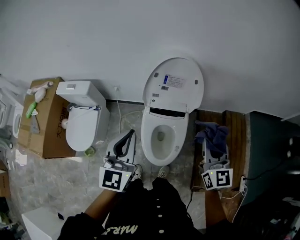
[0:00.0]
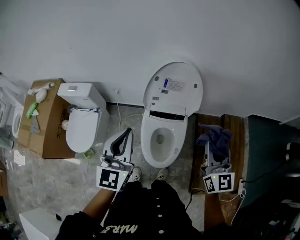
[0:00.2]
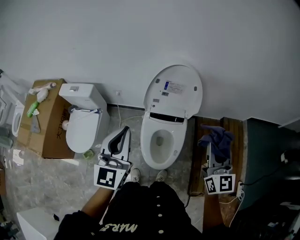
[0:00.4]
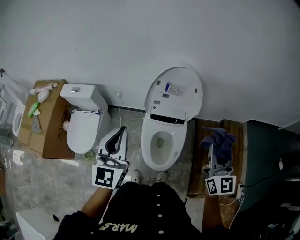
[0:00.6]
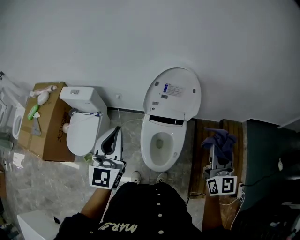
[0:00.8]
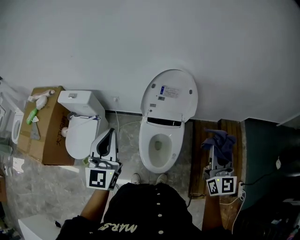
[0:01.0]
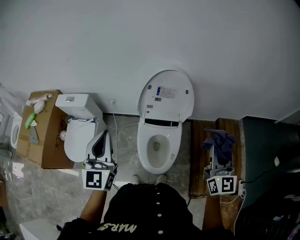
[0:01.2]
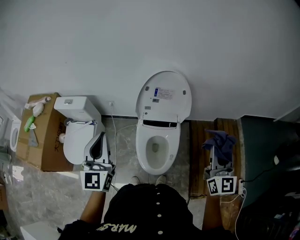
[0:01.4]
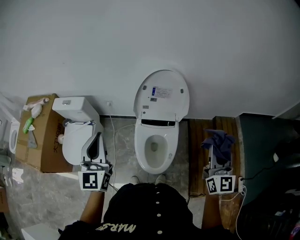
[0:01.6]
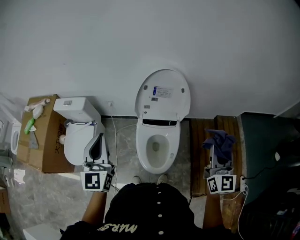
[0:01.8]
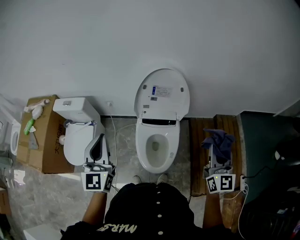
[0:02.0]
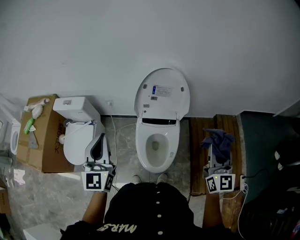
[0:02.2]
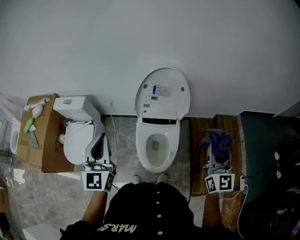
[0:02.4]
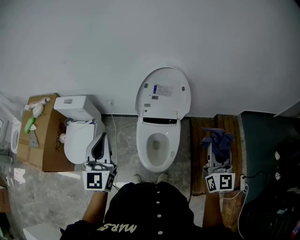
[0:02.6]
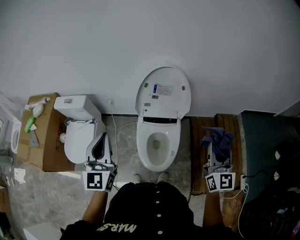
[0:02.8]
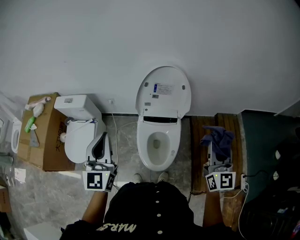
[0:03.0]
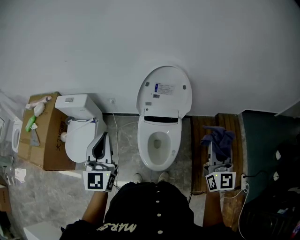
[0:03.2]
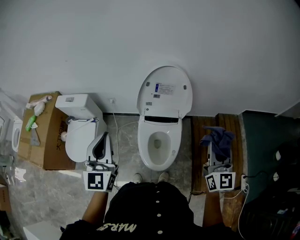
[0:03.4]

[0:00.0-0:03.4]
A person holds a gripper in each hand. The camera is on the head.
0:00.0 to 0:01.6: The left gripper goes approximately 10 cm to the left. The right gripper goes some 5 cm to the right.
0:01.6 to 0:03.4: The grippers stay close to where they were, moving slightly.

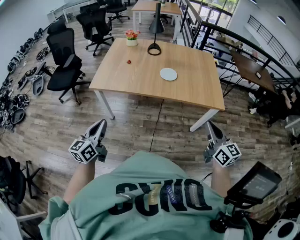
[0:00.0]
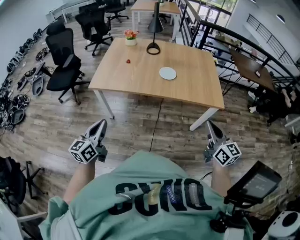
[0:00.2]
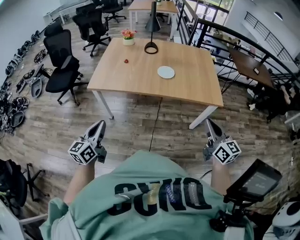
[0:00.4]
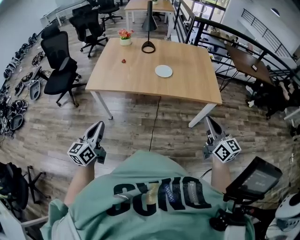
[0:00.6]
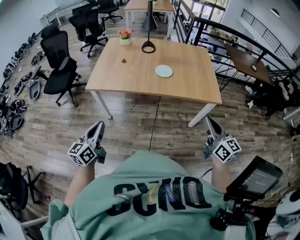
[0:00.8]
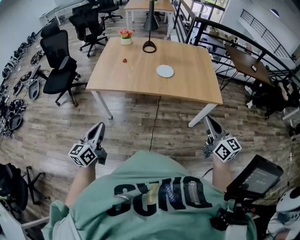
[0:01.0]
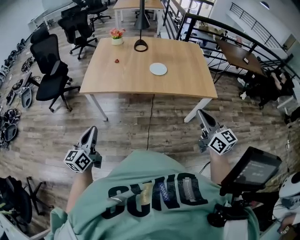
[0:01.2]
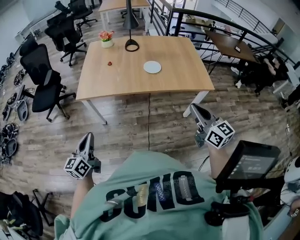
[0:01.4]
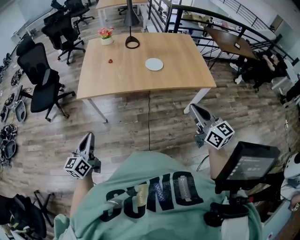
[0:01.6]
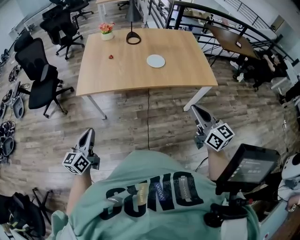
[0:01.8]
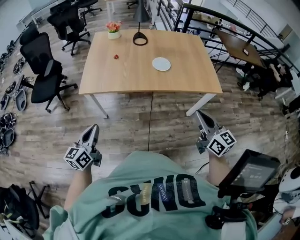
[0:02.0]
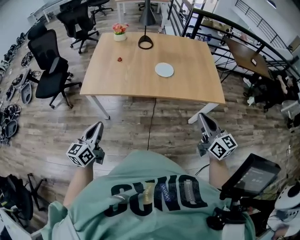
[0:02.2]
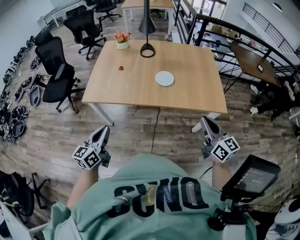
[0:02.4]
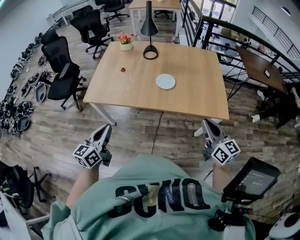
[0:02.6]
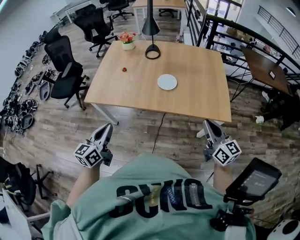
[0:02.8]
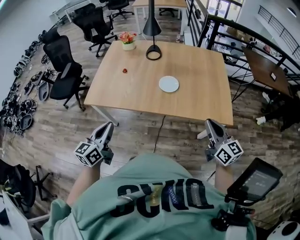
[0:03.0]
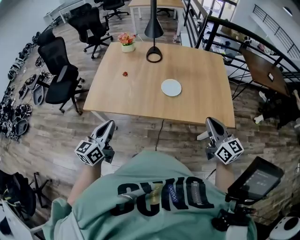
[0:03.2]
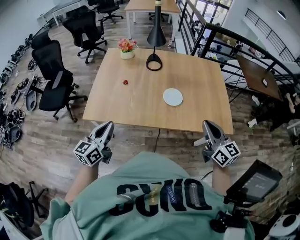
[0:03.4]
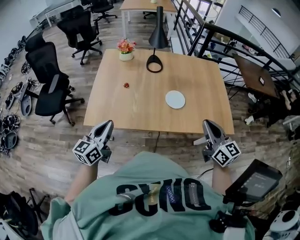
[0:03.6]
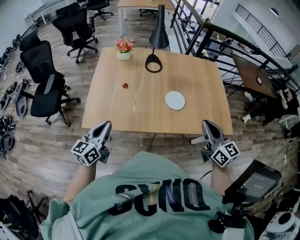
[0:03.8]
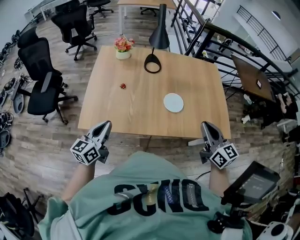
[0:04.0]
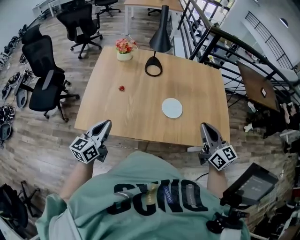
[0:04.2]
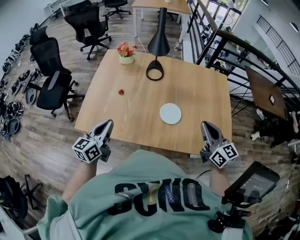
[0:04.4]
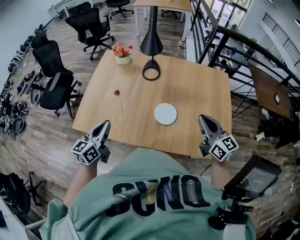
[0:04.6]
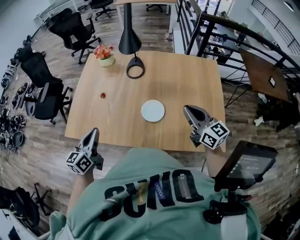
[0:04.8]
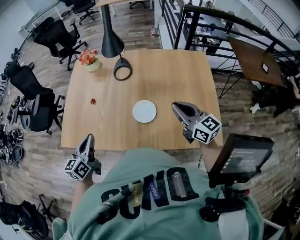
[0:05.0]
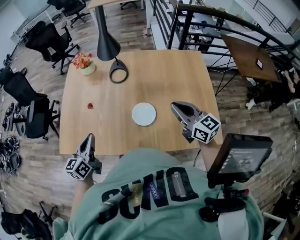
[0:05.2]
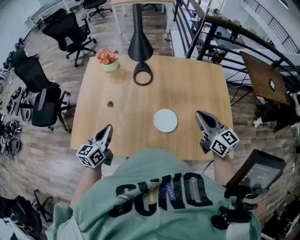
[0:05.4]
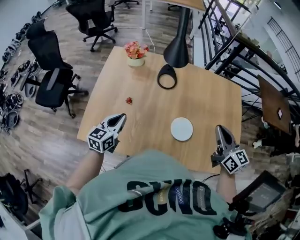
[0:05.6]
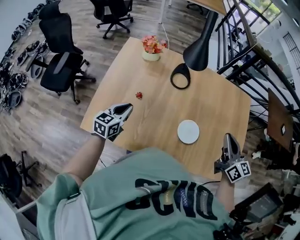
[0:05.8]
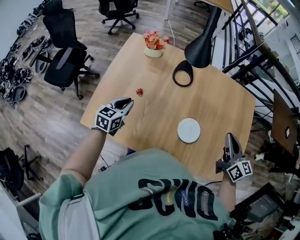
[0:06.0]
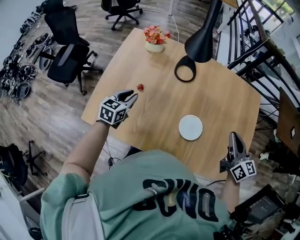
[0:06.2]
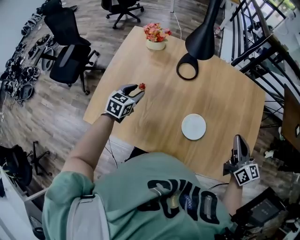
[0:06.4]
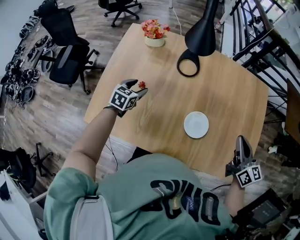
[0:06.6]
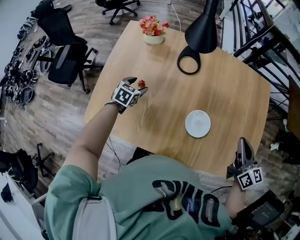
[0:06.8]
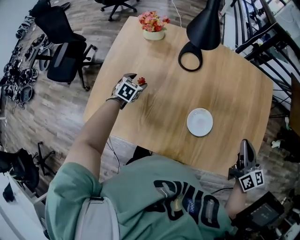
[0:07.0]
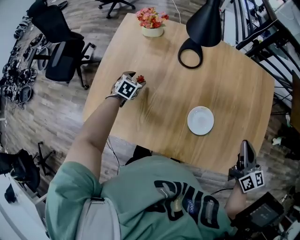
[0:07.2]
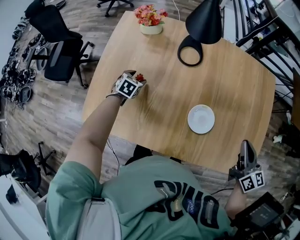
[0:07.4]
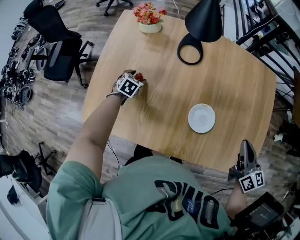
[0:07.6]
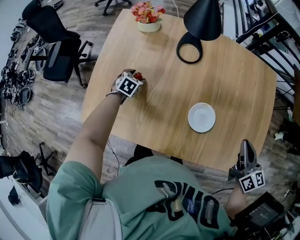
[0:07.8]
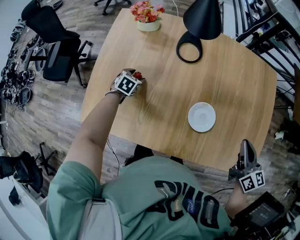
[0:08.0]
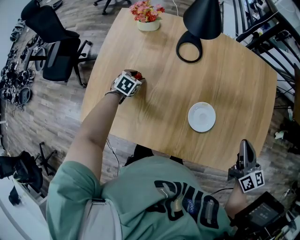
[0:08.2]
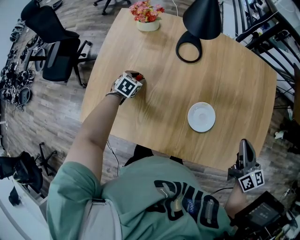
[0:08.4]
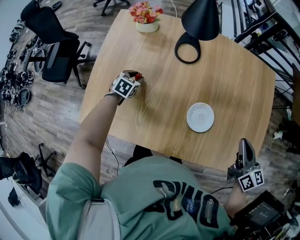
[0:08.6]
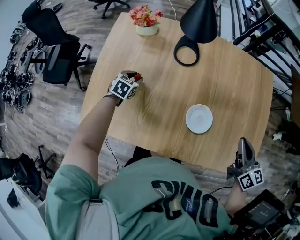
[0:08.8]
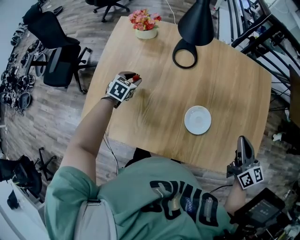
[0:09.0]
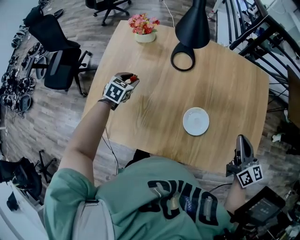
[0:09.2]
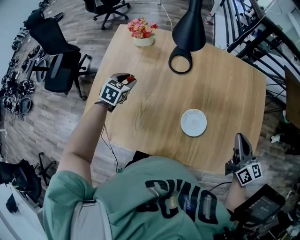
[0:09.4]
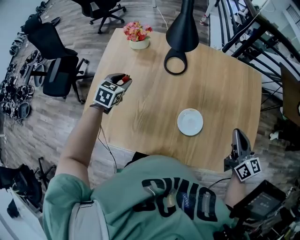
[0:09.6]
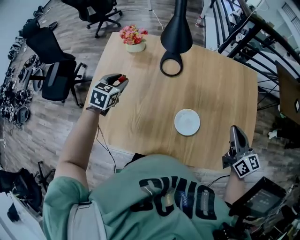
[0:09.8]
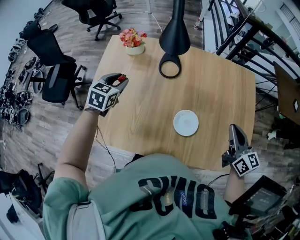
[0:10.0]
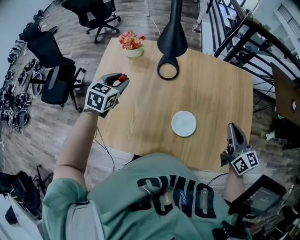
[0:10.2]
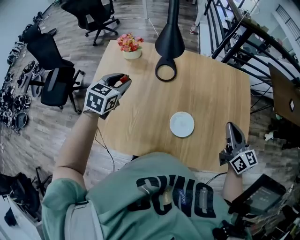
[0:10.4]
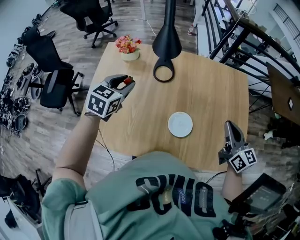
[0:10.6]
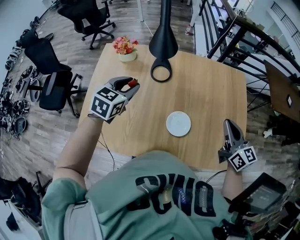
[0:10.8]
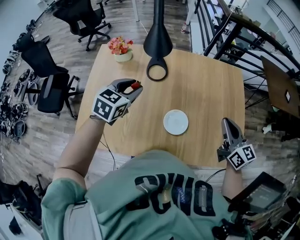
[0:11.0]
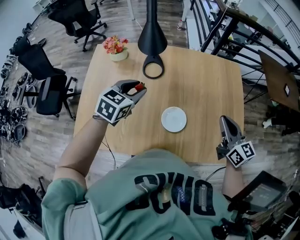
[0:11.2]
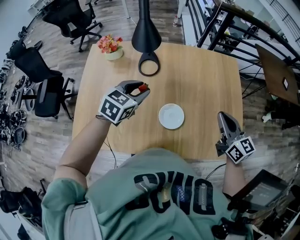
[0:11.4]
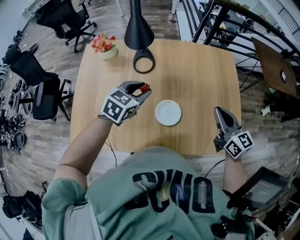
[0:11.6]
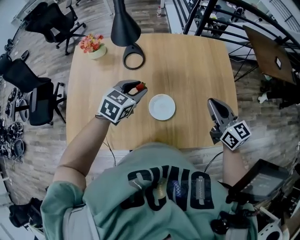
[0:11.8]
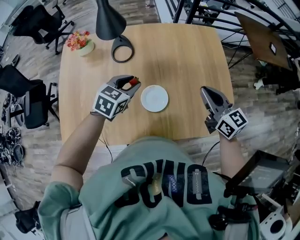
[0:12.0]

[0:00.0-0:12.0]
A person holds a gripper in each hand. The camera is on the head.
0:00.0 to 0:01.6: Both grippers move to the left, roughly 10 cm.
0:01.6 to 0:03.0: The left gripper moves to the right and forward, some 25 cm, while the right gripper goes about 25 cm forward and to the right.
0:03.0 to 0:04.4: The two grippers go about 25 cm forward.
0:04.4 to 0:06.0: The right gripper goes about 15 cm forward, while the left gripper is displaced forward and downward by about 25 cm, and rotates approximately 20 degrees.
0:06.0 to 0:07.6: The left gripper shifts some 20 cm downward and forward, tilts its fingers approximately 30 degrees downward, and opens up. The right gripper shifts approximately 10 cm downward and to the right.
0:07.6 to 0:09.0: The left gripper travels upward by roughly 5 cm, and closes.
0:09.0 to 0:10.4: The right gripper is displaced upward by some 5 cm. Meanwhile the left gripper moves upward, approximately 20 cm.
0:10.4 to 0:12.0: The left gripper travels to the right by about 25 cm, and turns by about 20 degrees.

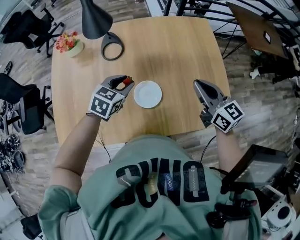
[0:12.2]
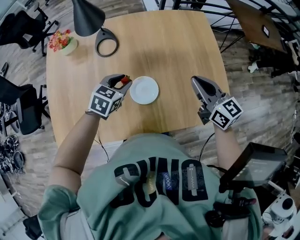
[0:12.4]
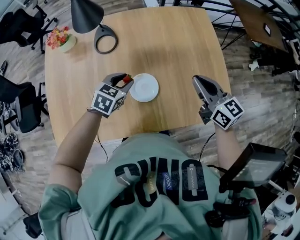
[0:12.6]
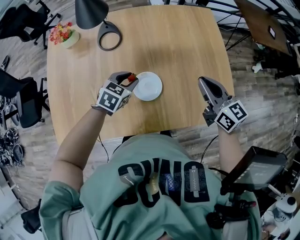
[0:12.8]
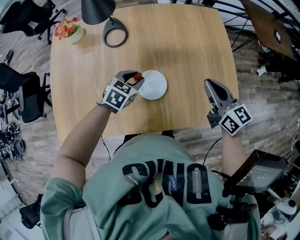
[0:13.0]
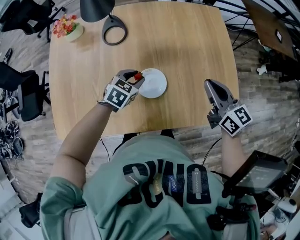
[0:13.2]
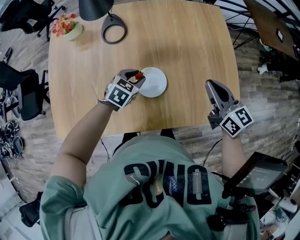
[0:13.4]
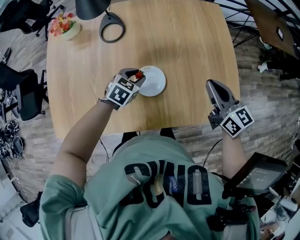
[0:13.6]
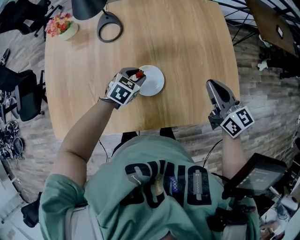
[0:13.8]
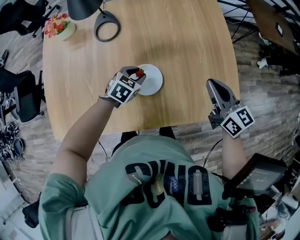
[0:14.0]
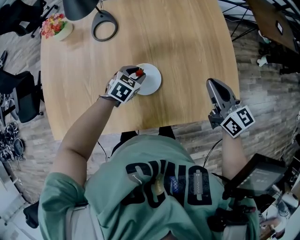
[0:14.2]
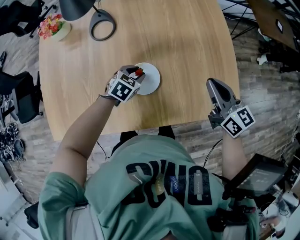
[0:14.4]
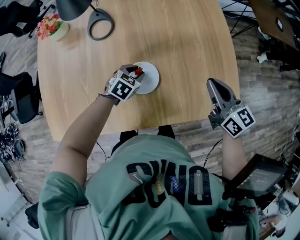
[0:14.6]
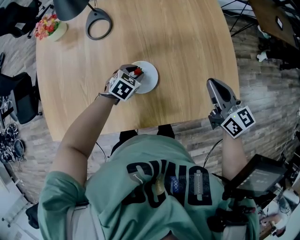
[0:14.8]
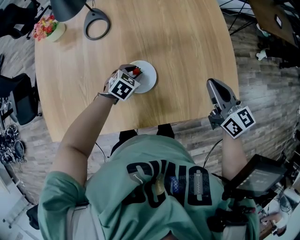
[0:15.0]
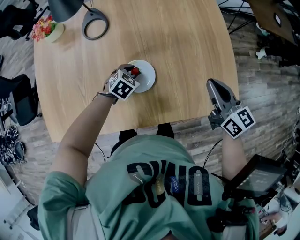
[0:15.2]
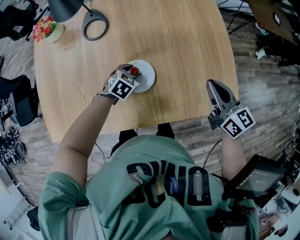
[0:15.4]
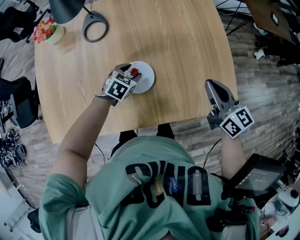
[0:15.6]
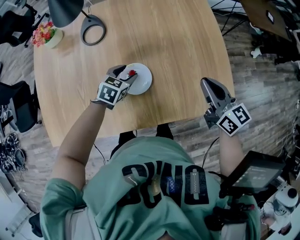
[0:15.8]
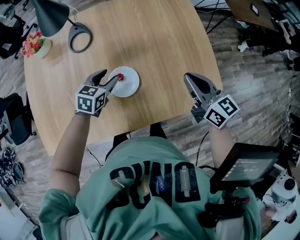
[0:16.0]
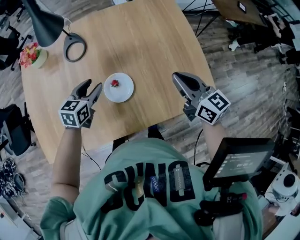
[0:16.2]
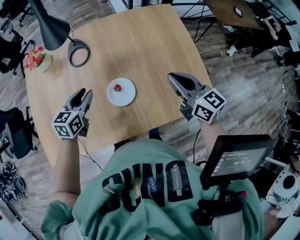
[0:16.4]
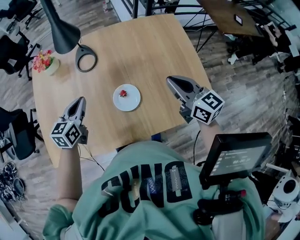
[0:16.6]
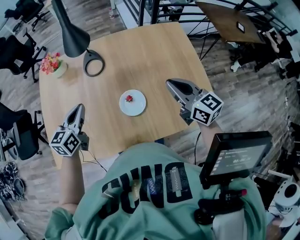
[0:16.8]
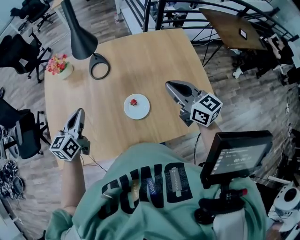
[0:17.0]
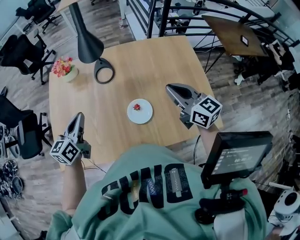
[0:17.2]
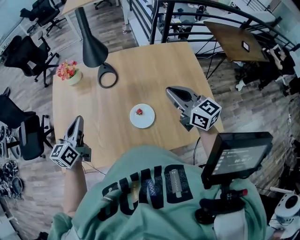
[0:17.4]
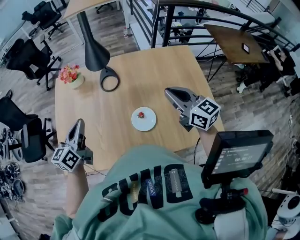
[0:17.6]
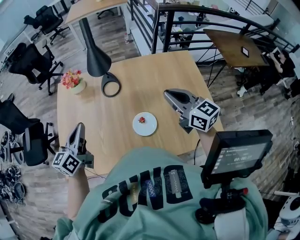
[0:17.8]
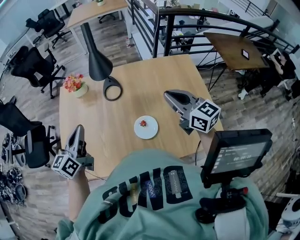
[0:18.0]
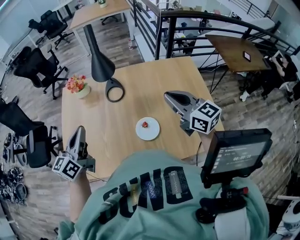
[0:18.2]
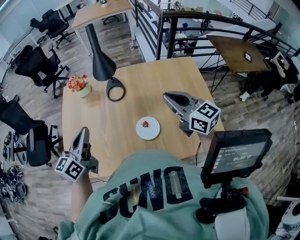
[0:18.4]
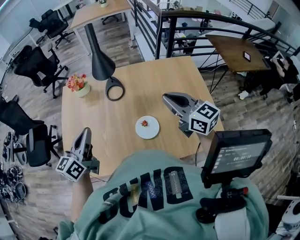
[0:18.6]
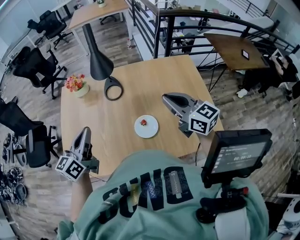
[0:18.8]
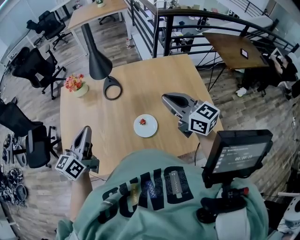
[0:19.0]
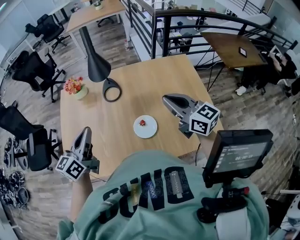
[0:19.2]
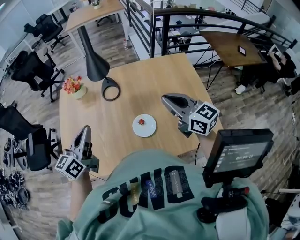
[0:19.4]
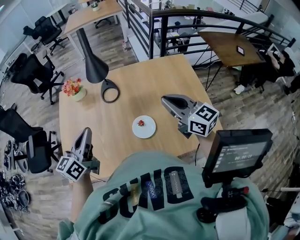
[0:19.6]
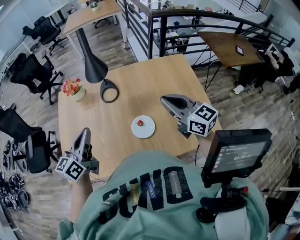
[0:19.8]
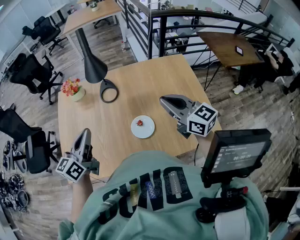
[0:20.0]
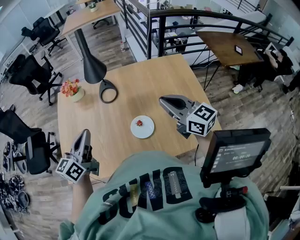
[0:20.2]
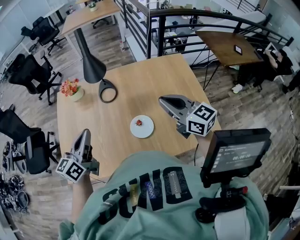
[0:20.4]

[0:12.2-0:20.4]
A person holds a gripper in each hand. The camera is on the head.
0:12.2 to 0:13.8: The right gripper is displaced downward and to the right by about 10 cm, while the left gripper is displaced downward and to the right by approximately 15 cm.
0:13.8 to 0:15.4: The left gripper moves downward, some 5 cm.
0:15.4 to 0:17.2: The right gripper moves upward and to the left, some 20 cm, while the left gripper travels upward and to the left by roughly 40 cm, angles its fingers upward, by approximately 50 degrees, and closes its fingers.
0:17.2 to 0:18.8: The right gripper shifts by about 5 cm. Meanwhile the left gripper heads upward, covering some 5 cm.
0:18.8 to 0:20.4: There are only small adjustments of the grippers.
